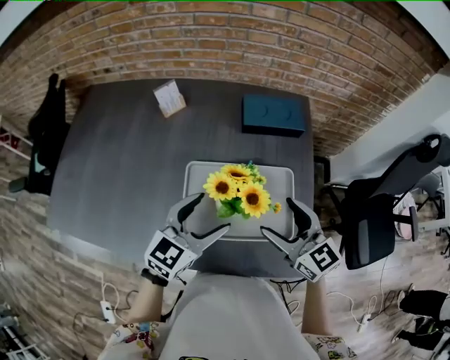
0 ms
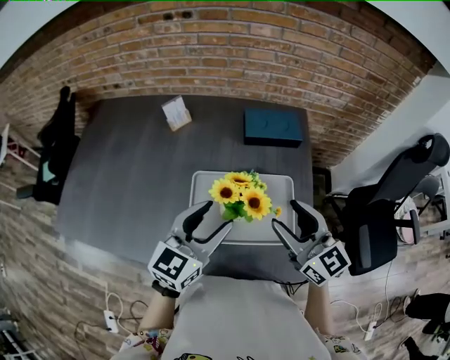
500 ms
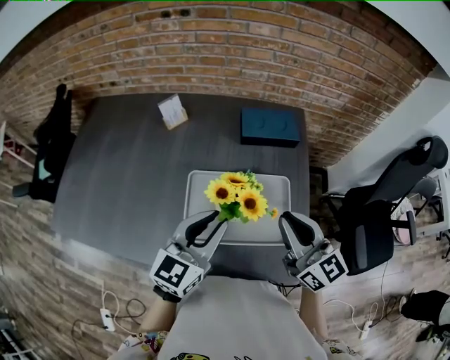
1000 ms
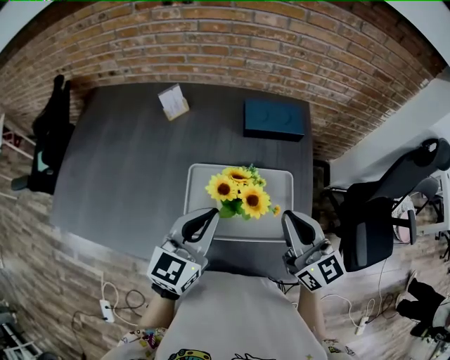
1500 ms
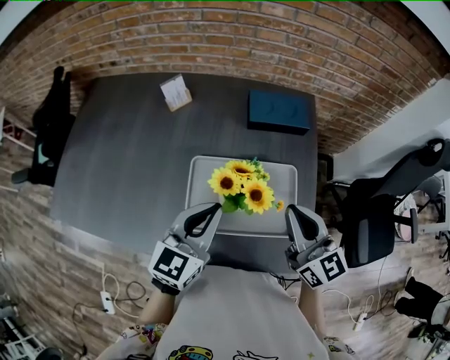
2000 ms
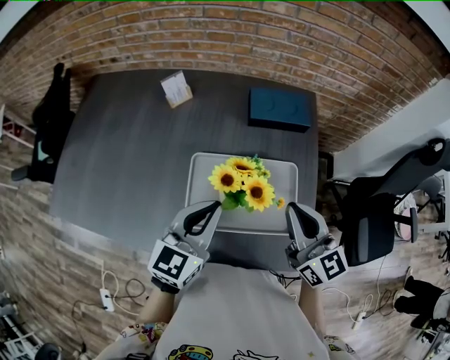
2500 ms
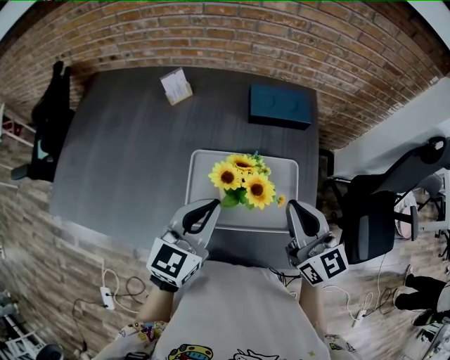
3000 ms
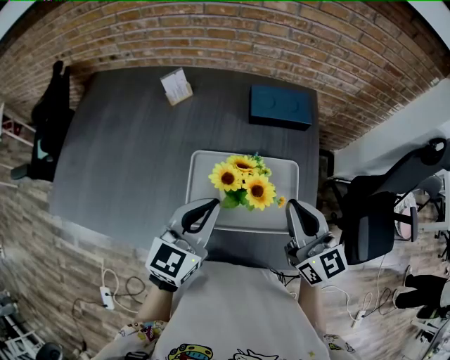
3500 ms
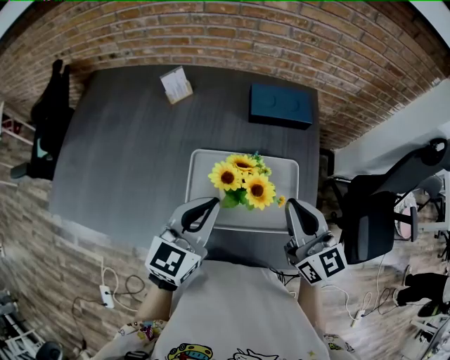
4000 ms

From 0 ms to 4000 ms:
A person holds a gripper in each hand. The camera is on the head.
From 0 ms to 2000 ms: The right gripper shifts about 5 cm upward, and closes its fingers; the left gripper closes up.
From 2000 ms to 4000 ms: Both grippers stay put.

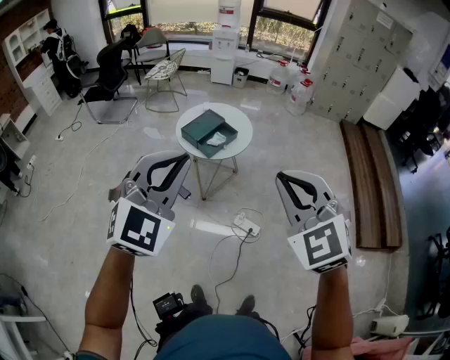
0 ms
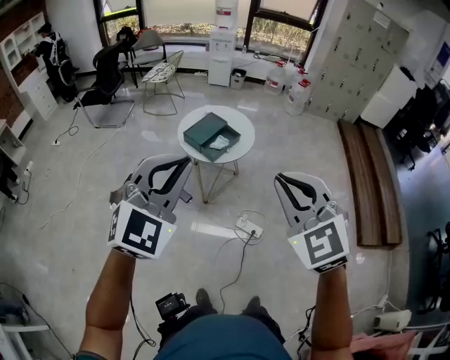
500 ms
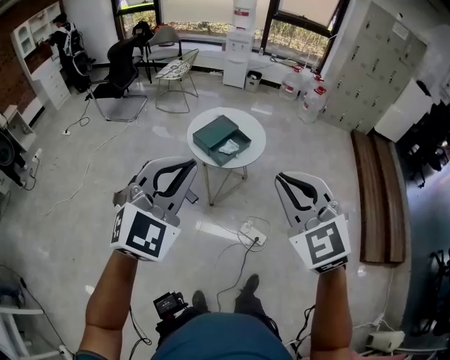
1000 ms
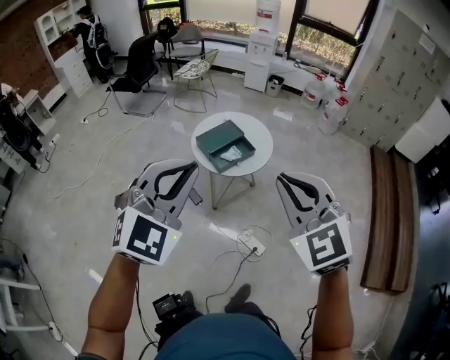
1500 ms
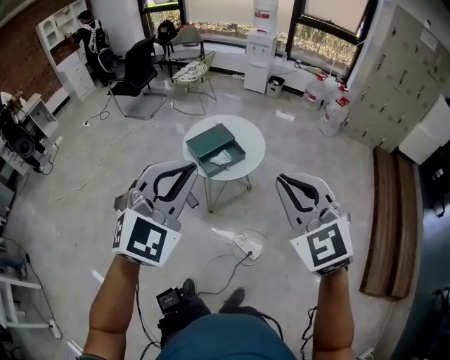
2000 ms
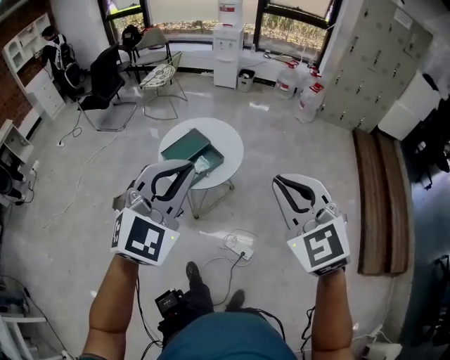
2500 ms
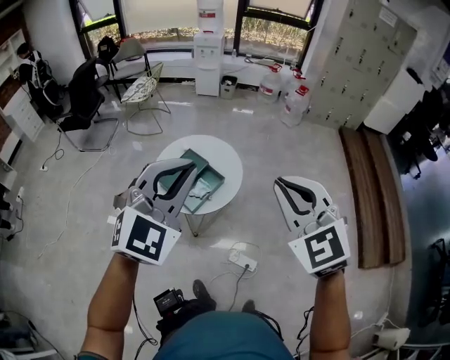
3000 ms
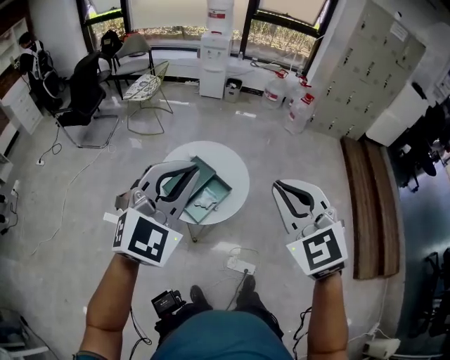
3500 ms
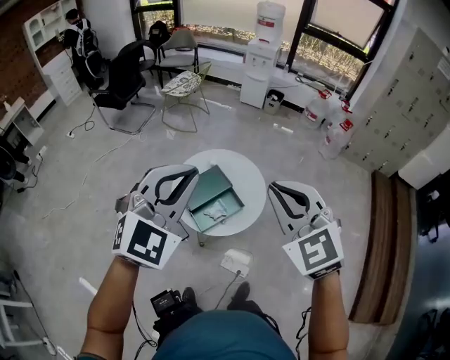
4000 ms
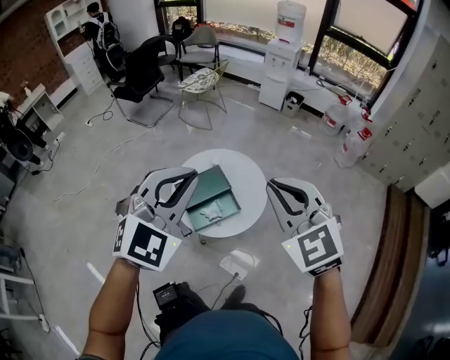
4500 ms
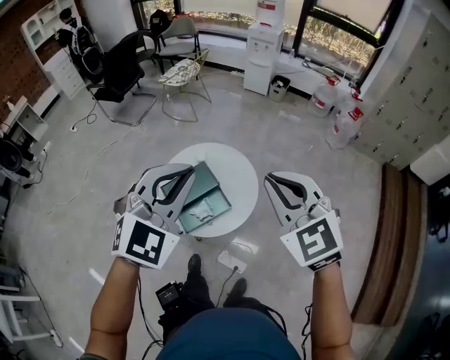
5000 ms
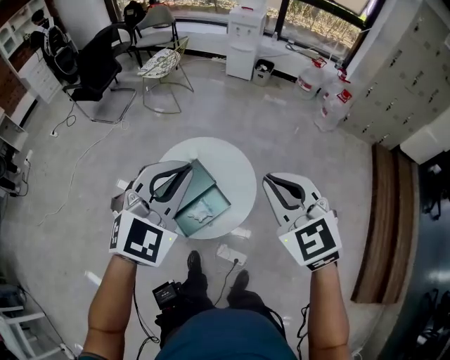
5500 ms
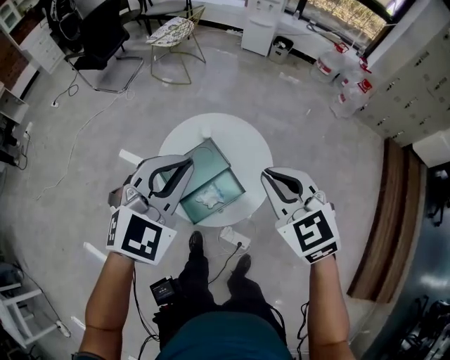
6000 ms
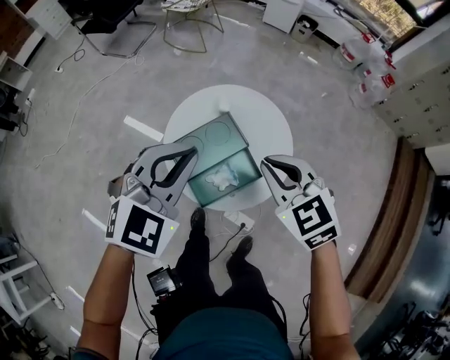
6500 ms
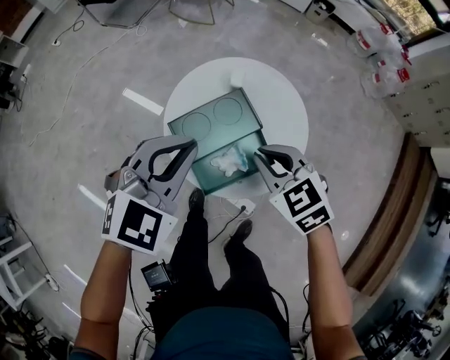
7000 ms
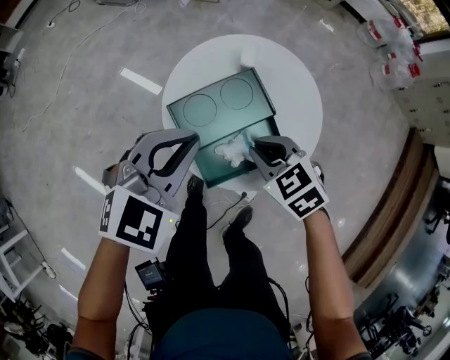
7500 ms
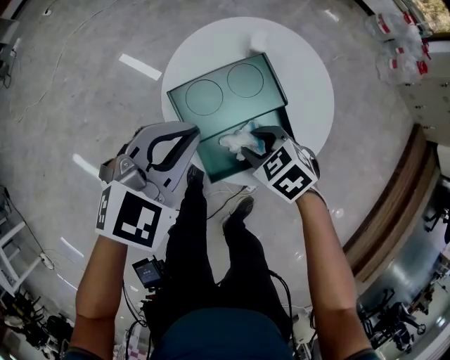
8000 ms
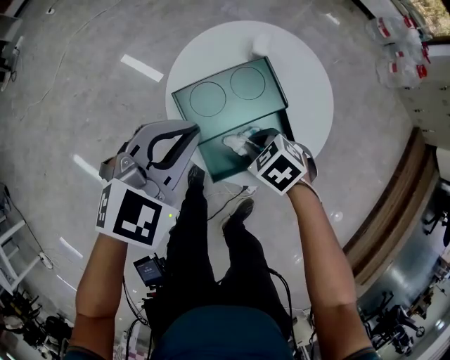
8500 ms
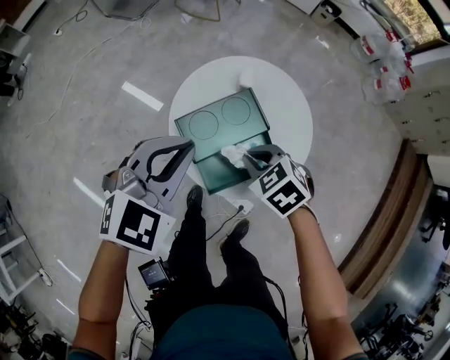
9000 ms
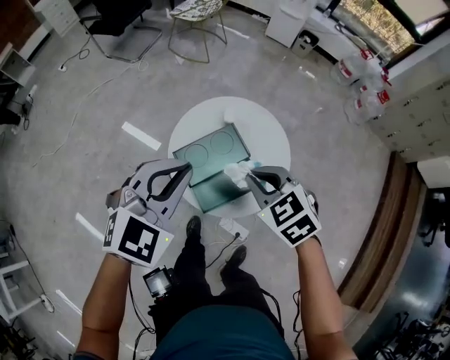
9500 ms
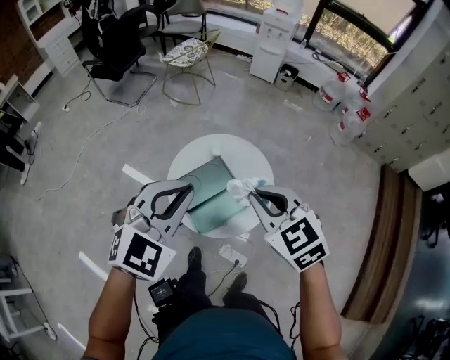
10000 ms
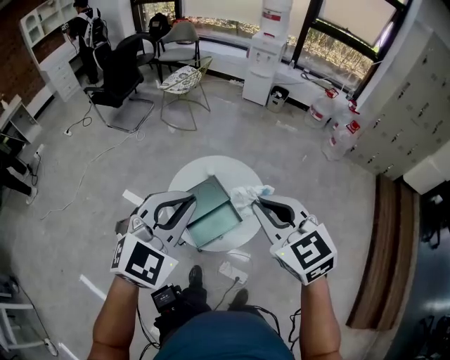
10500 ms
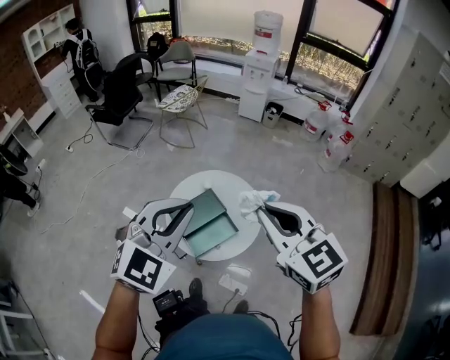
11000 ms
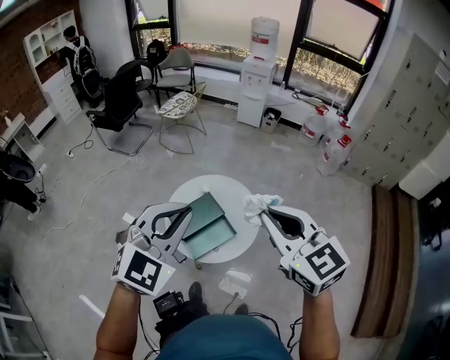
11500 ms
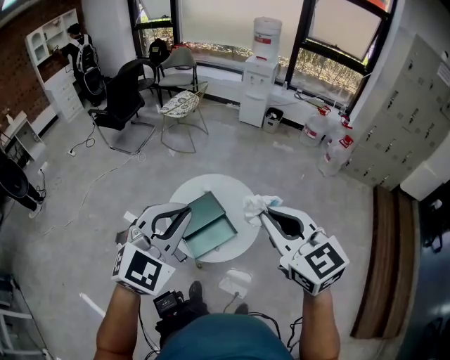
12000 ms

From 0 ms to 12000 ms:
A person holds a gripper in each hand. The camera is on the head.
From 0 ms to 2000 ms: The right gripper goes some 30 cm forward and to the right. Meanwhile the left gripper is displaced to the right and forward by approximately 25 cm.
From 2000 ms to 4000 ms: The pair of grippers is taken forward, roughly 40 cm.
From 4000 ms to 6000 ms: The grippers both shift forward and downward by approximately 30 cm.
From 6000 ms to 8000 ms: Both grippers travel together downward, about 40 cm. The right gripper points its fingers roughly 30 degrees further downward, and opens.
From 8000 ms to 10000 ms: The grippers both shift upward by approximately 50 cm. The right gripper rotates approximately 40 degrees, and closes its fingers.
From 10000 ms to 12000 ms: Both grippers travel together upward, backward and to the right, approximately 20 cm. The right gripper changes its angle by some 20 degrees.

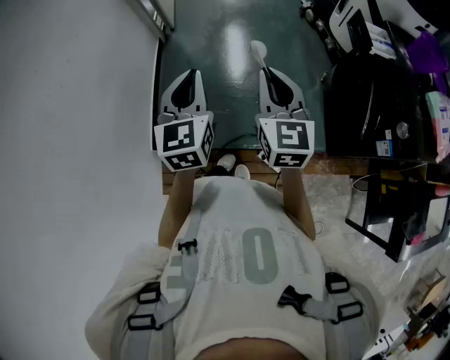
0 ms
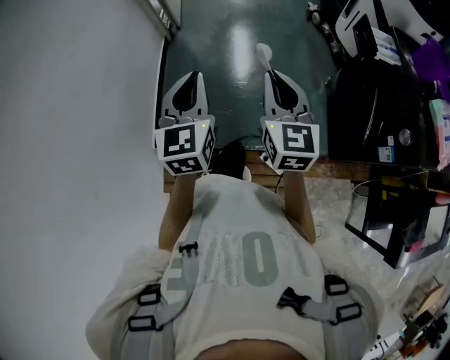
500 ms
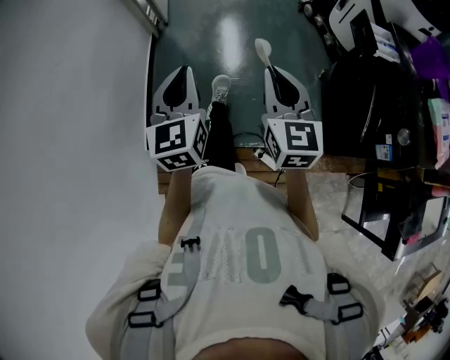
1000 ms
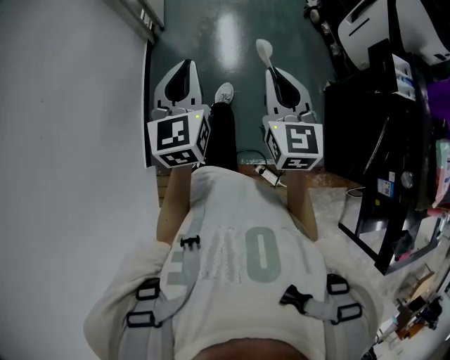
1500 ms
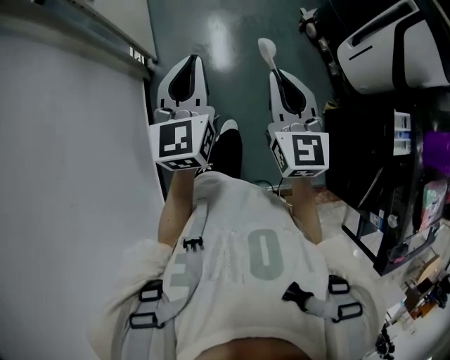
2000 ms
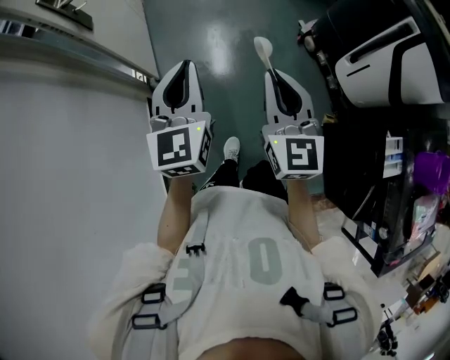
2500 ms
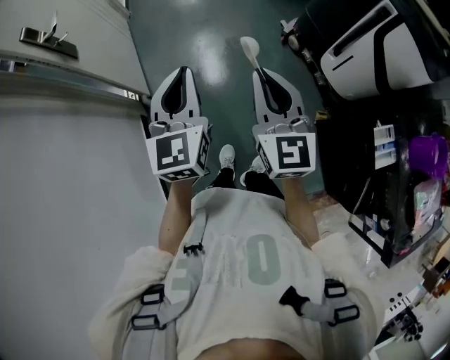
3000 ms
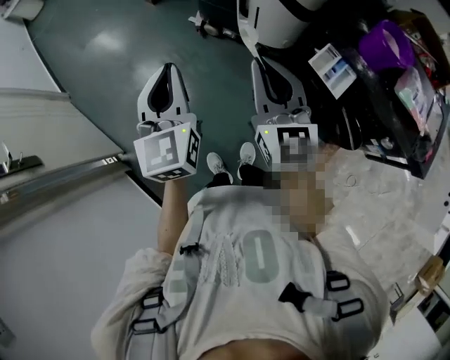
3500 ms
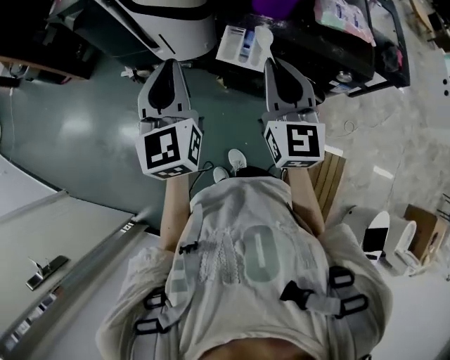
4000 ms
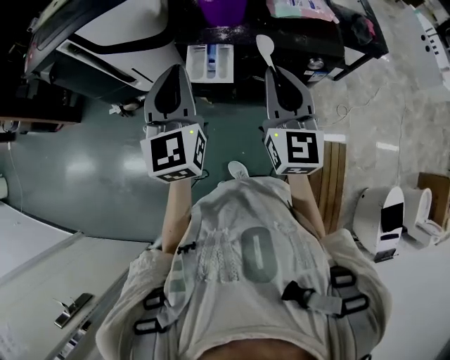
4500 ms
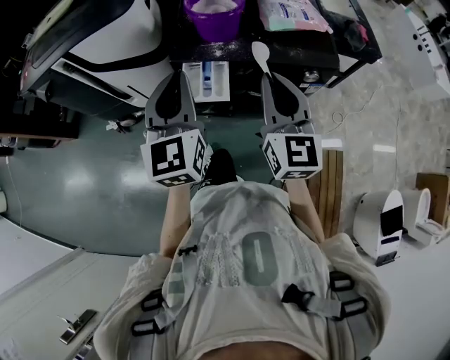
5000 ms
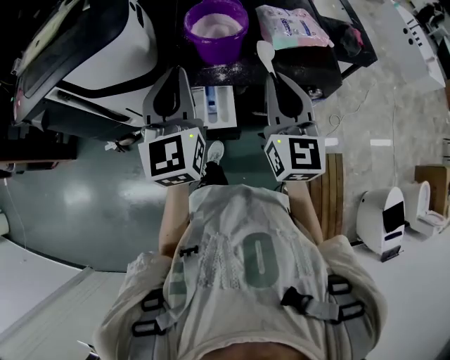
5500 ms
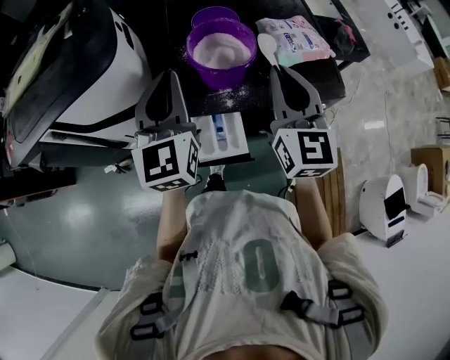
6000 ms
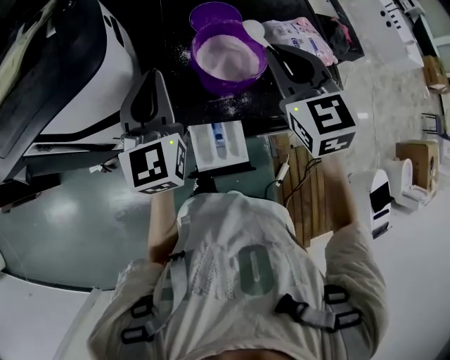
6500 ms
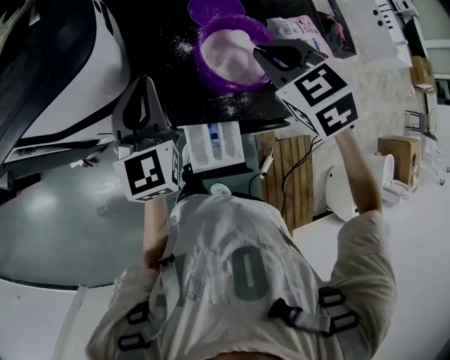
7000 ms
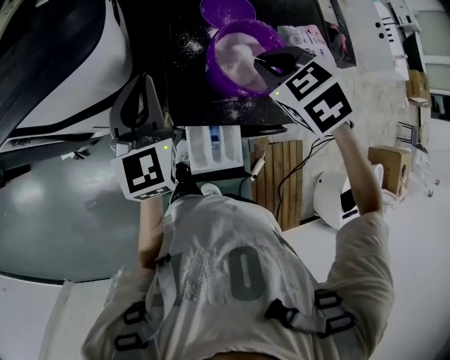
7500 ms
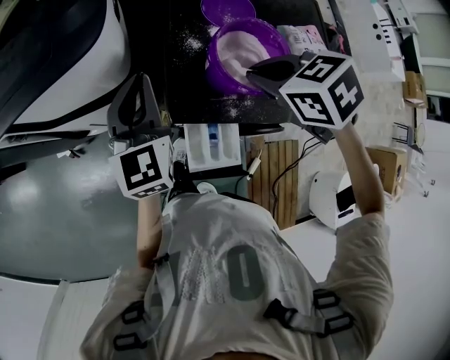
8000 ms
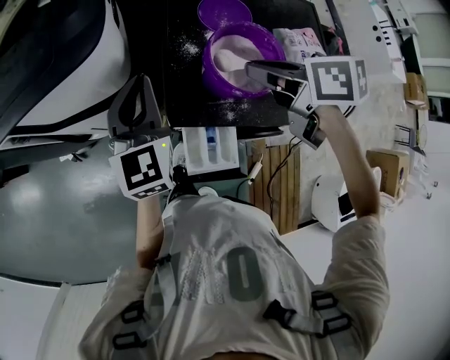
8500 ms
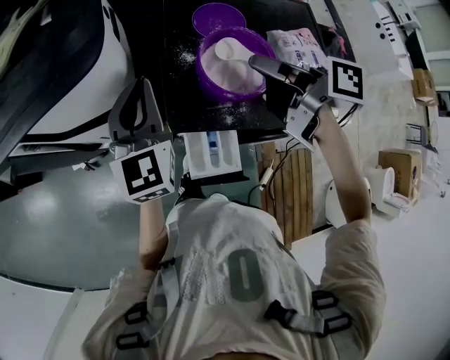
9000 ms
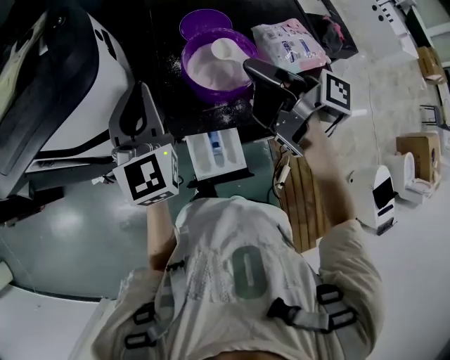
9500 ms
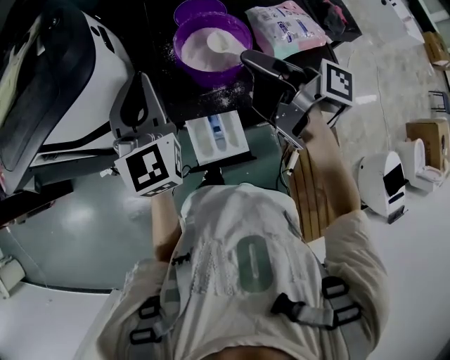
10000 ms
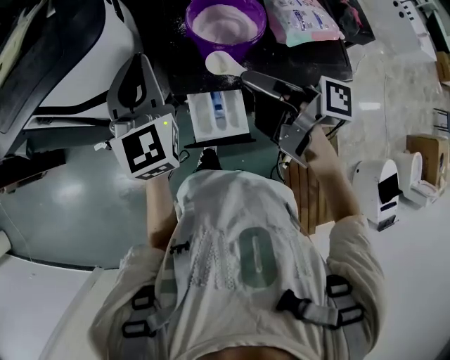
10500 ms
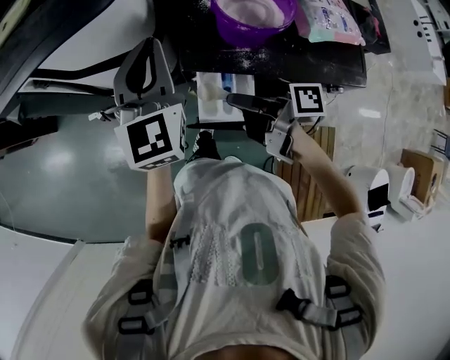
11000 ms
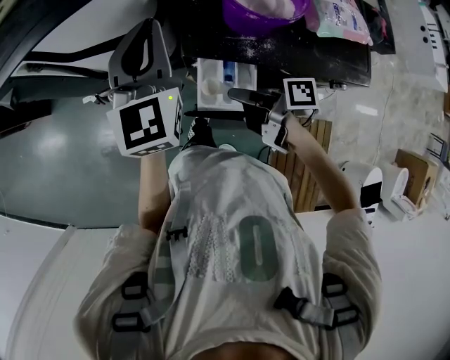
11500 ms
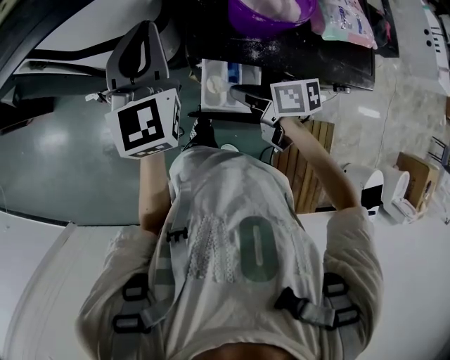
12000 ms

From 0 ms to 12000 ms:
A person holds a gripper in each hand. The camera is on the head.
From 0 ms to 2000 ms: The two grippers travel together, forward, about 50 cm.
From 2000 ms to 4000 ms: The two grippers travel together, roughly 50 cm. The left gripper turns by about 60 degrees; the right gripper changes its angle by some 70 degrees.
From 4000 ms to 6000 ms: The grippers both shift forward by approximately 25 cm. The right gripper turns by some 20 degrees, while the left gripper changes its angle by some 30 degrees.
From 6000 ms to 8000 ms: The left gripper ends up about 15 cm from where it was; the right gripper moves some 15 cm, and tilts its fingers about 60 degrees downward.
From 8000 ms to 10000 ms: The right gripper travels upward, to the right and backward by some 10 cm, and tips its fingers upward by some 60 degrees, while the left gripper is displaced upward, backward and to the right by some 10 cm.
From 10000 ms to 12000 ms: The left gripper heads to the left, covering approximately 5 cm; the right gripper travels downward and to the left by approximately 25 cm, and tips its fingers downward by roughly 30 degrees.
